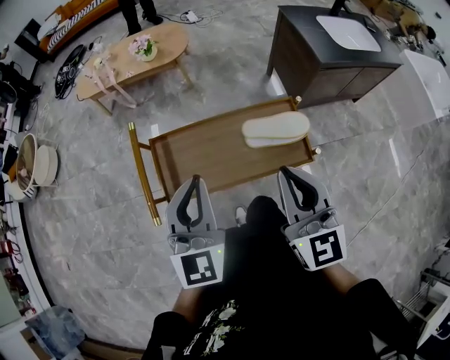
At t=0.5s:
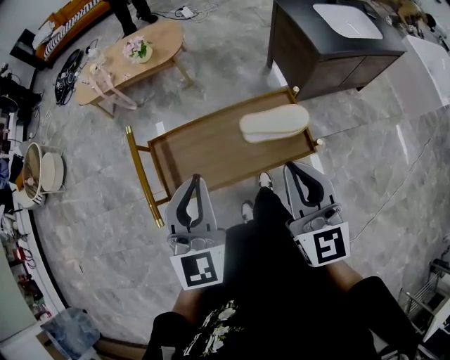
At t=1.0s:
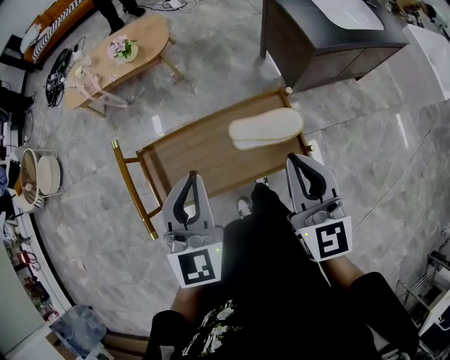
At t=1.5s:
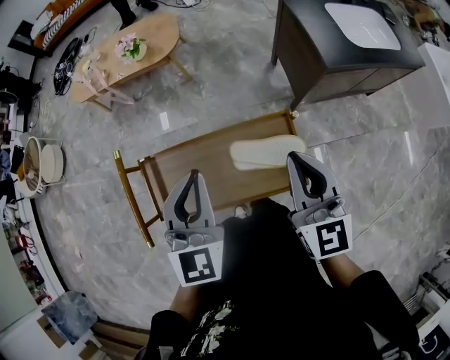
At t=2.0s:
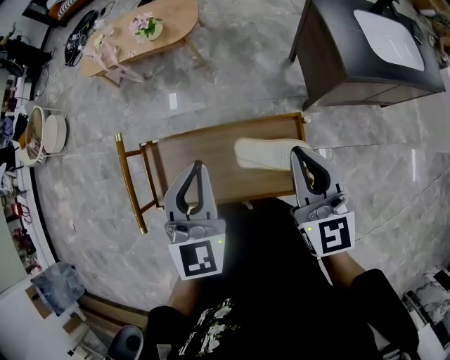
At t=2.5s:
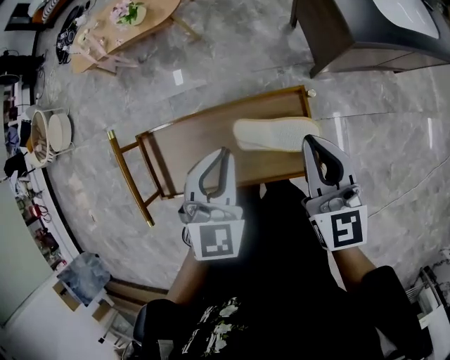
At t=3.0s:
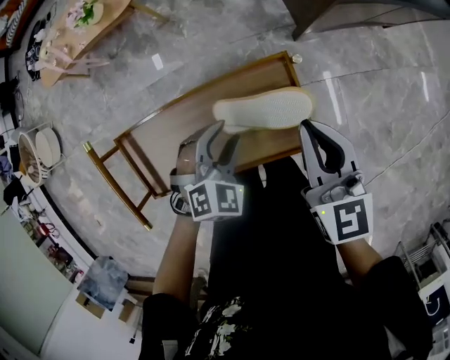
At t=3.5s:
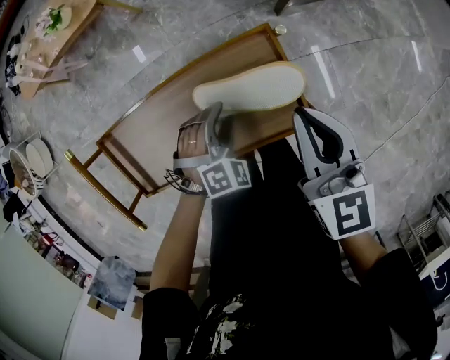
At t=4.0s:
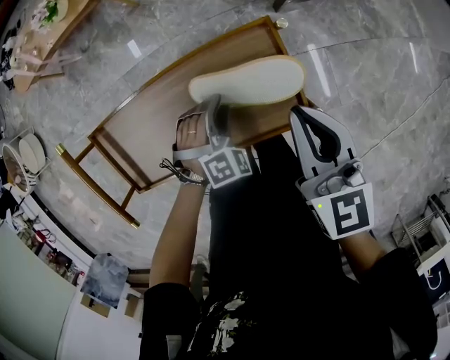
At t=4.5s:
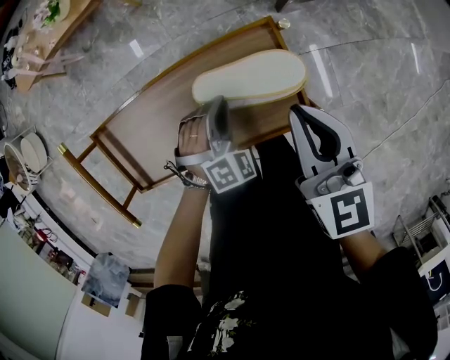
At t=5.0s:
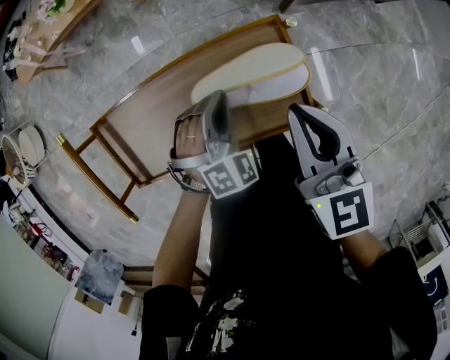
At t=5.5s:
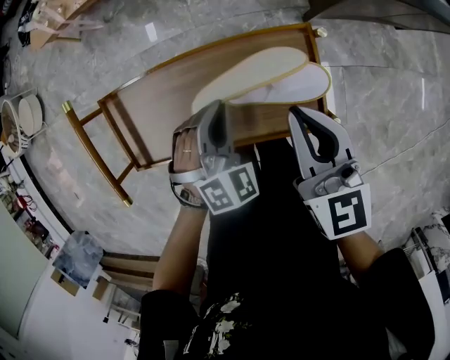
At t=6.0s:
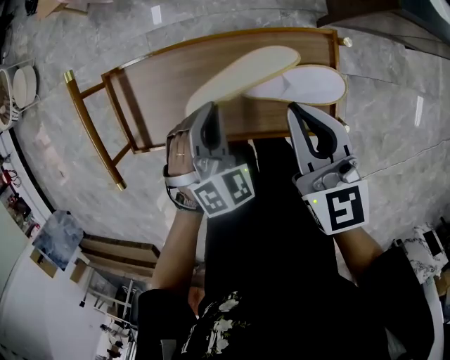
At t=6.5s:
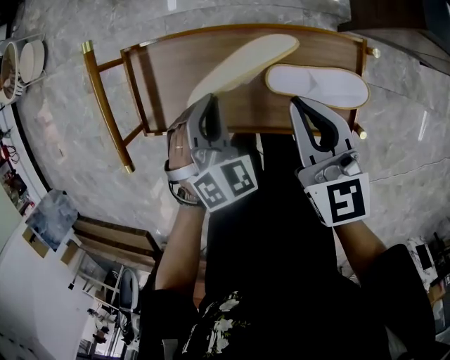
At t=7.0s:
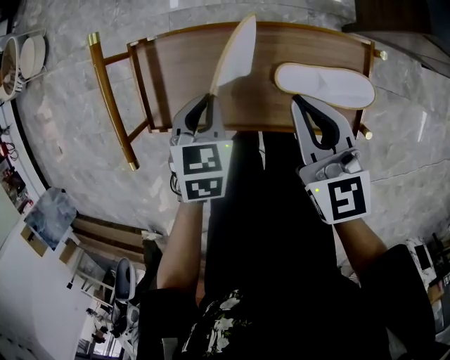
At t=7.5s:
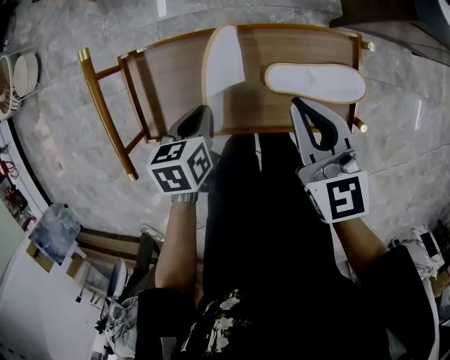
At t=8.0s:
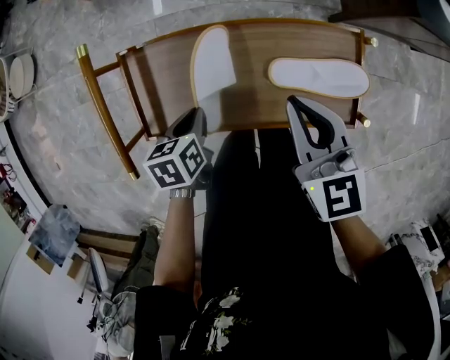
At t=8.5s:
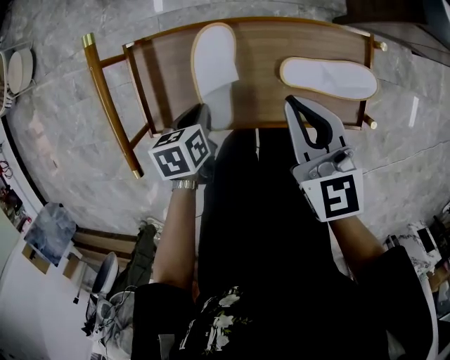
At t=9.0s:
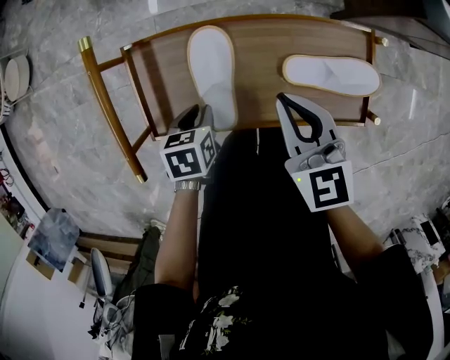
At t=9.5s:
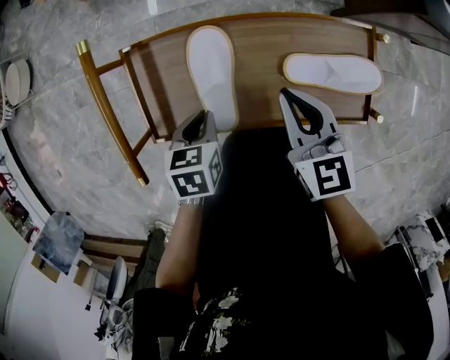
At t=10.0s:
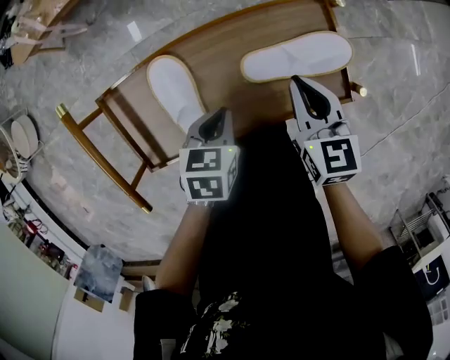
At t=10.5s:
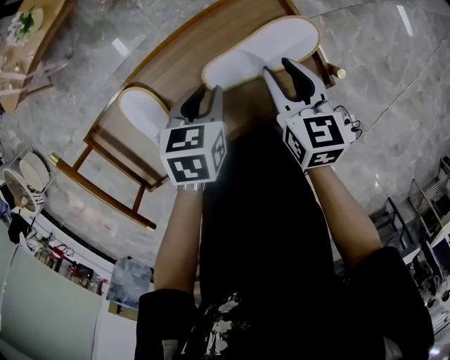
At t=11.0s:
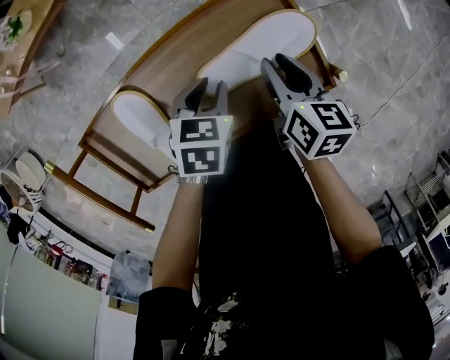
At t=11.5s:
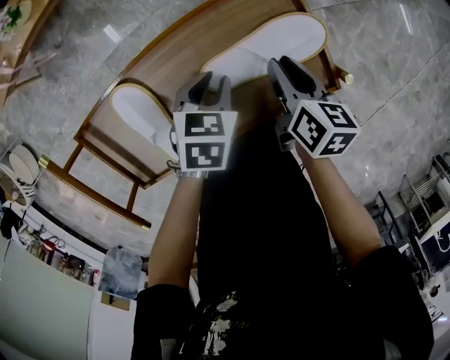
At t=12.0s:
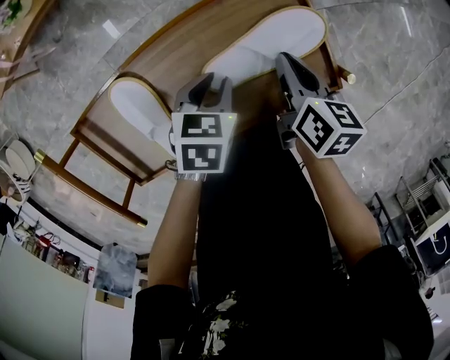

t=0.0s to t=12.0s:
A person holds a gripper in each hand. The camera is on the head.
t=0.0s to t=2.0s: The grippers both shift forward and to the right by approximately 20 cm.
t=2.0s to t=4.0s: The right gripper heads downward, covering roughly 15 cm, and turns by some 20 degrees, while the left gripper travels downward by about 35 cm, angles its fingers downward, by about 40 degrees, and opens up.
t=4.0s to t=6.0s: The right gripper shifts roughly 10 cm to the left, while the left gripper shifts some 15 cm to the left and upward, turns by some 30 degrees, and closes its fingers.
t=6.0s to t=8.0s: The right gripper is displaced to the left by roughly 10 cm, while the left gripper moves to the left and downward, about 15 cm, and rotates around the line of its fingers by approximately 70 degrees, counterclockwise from behind.
t=8.0s to t=10.0s: The left gripper shifts roughly 10 cm to the right, and swivels some 30 degrees. The right gripper is displaced downward and to the right by some 10 cm, and turns by some 20 degrees.
t=10.0s to t=12.0s: The right gripper heads downward and to the right, covering roughly 10 cm, swivels approximately 40 degrees, and opens, then closes once more. The left gripper heads forward and to the right, covering approximately 10 cm, and opens.

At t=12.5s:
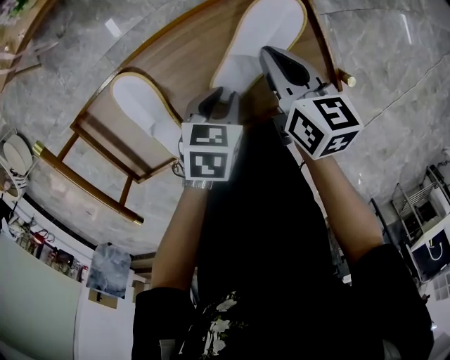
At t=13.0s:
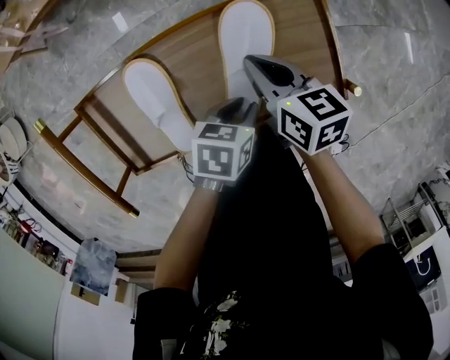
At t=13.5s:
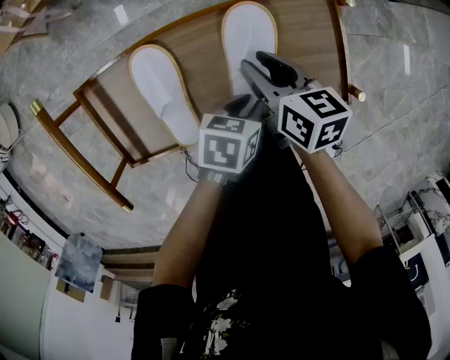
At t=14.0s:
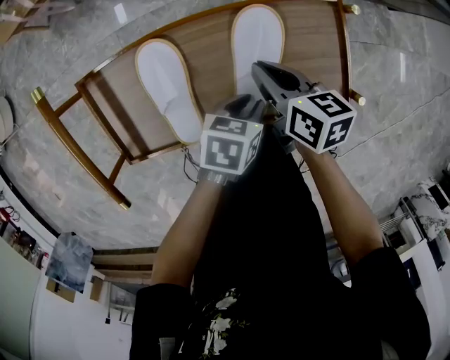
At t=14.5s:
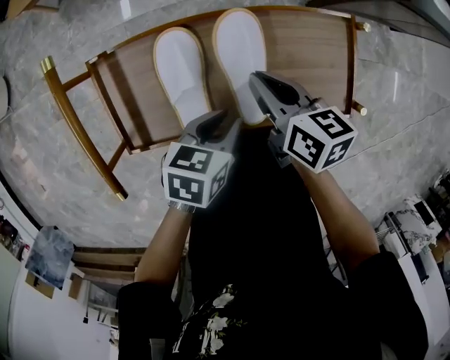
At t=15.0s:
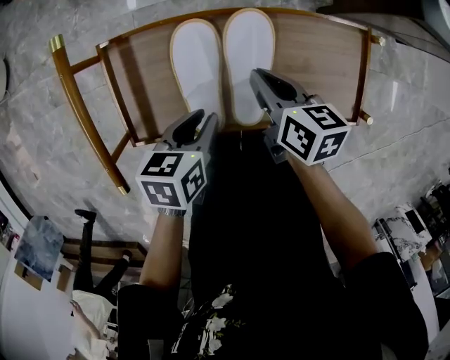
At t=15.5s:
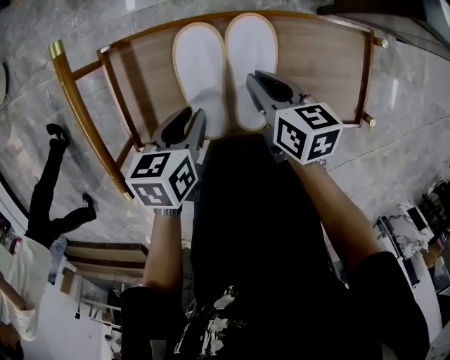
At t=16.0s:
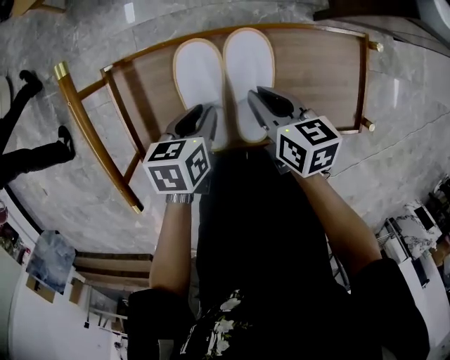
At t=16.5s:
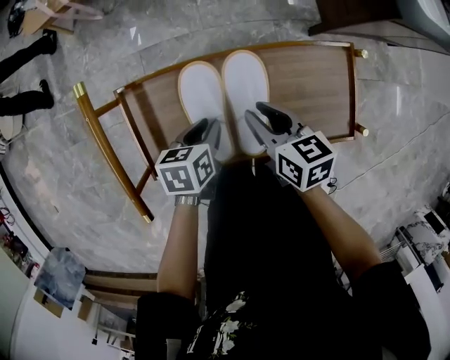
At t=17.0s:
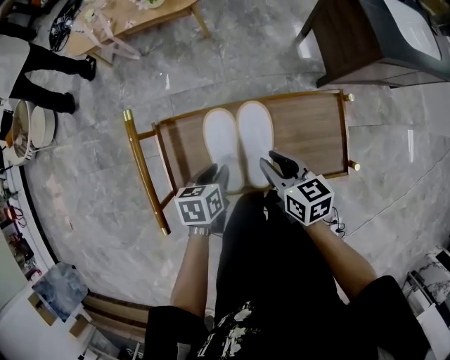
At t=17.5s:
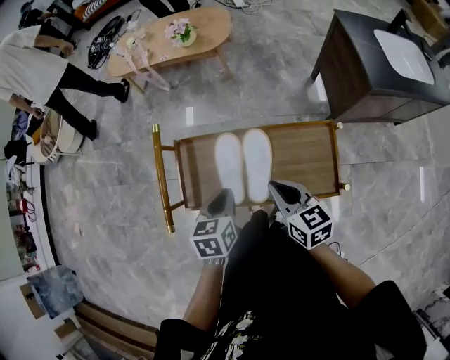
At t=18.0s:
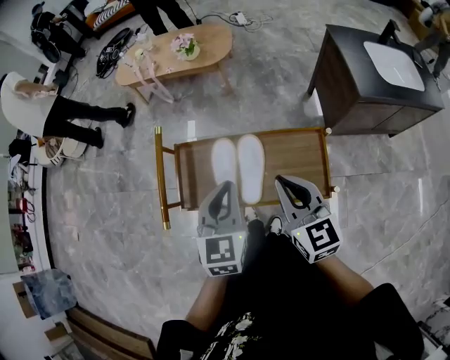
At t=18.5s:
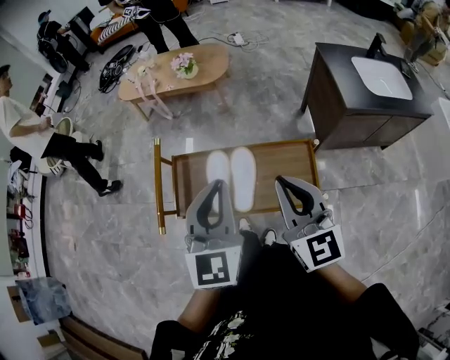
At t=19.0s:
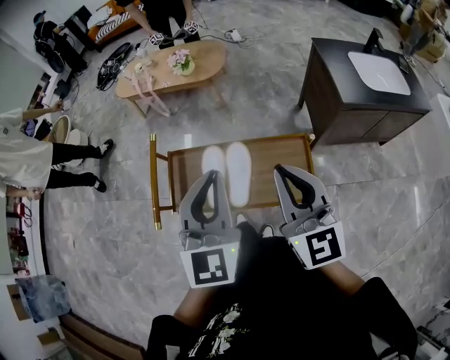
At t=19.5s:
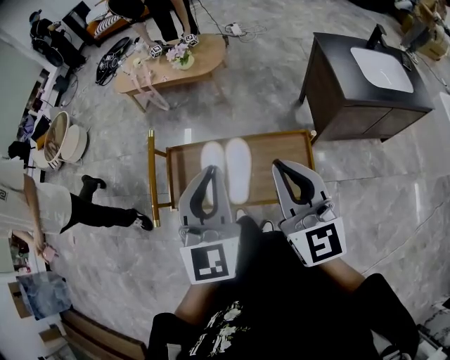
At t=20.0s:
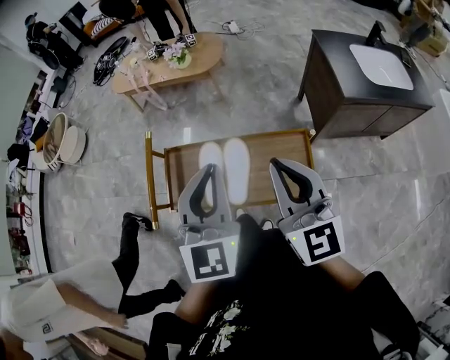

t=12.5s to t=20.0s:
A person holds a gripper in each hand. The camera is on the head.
t=12.5s to t=14.5s: The left gripper is displaced to the left, backward and upward by approximately 10 cm, and rotates approximately 20 degrees; the right gripper goes about 15 cm to the left and backward, swivels some 20 degrees, and opens, then closes once more.
t=14.5s to t=16.5s: The left gripper travels to the left and forward by approximately 10 cm. Meanwhile the right gripper opens its fingers.
t=16.5s to t=18.0s: Both grippers move upward, roughly 25 cm. The right gripper turns by about 40 degrees, and closes, while the left gripper changes its angle by some 50 degrees, and closes.
t=18.0s to t=20.0s: Both grippers travel together upward, approximately 10 cm.

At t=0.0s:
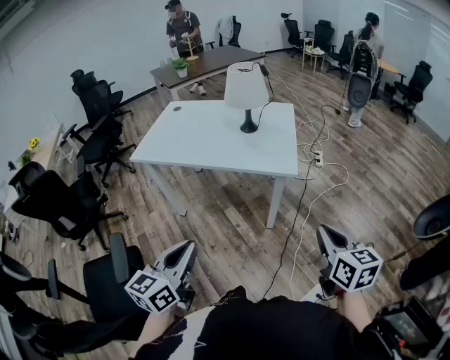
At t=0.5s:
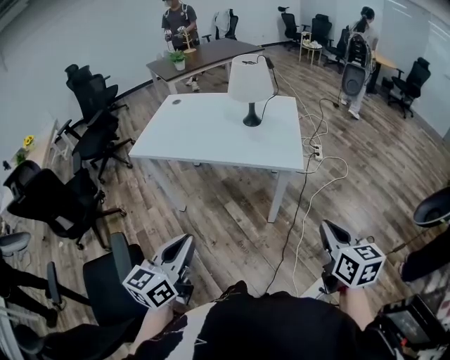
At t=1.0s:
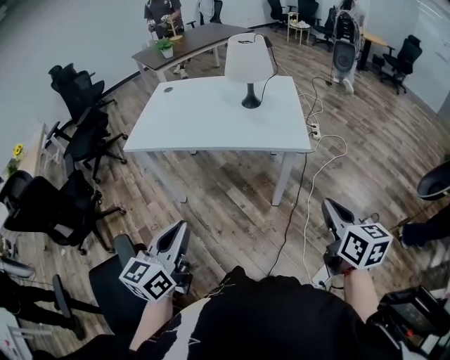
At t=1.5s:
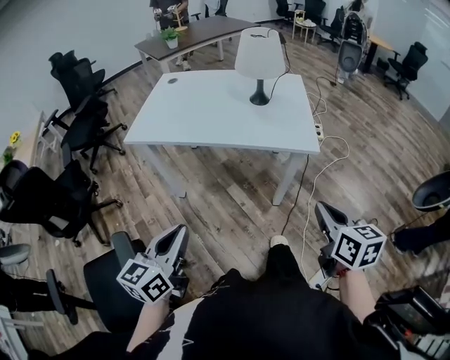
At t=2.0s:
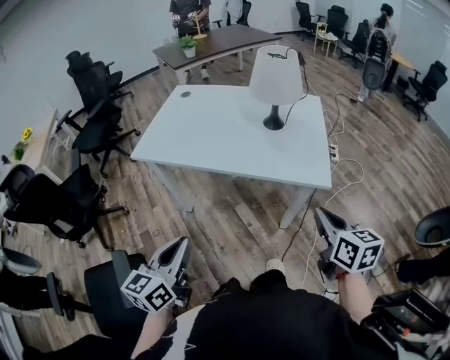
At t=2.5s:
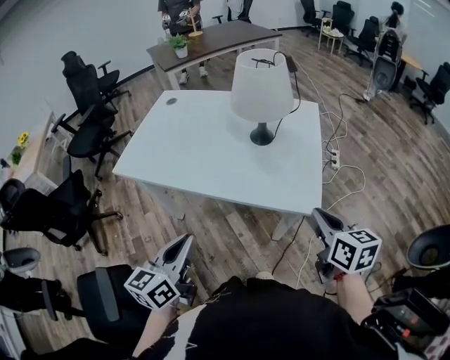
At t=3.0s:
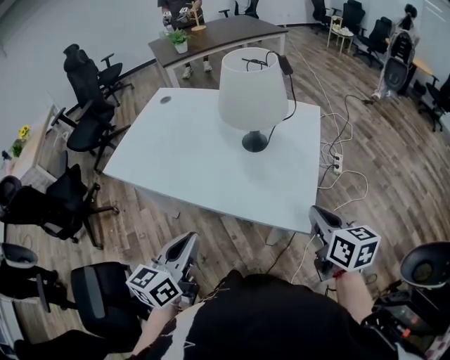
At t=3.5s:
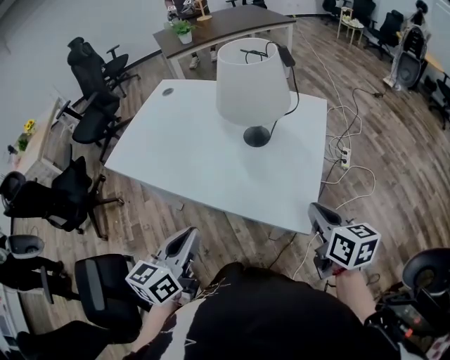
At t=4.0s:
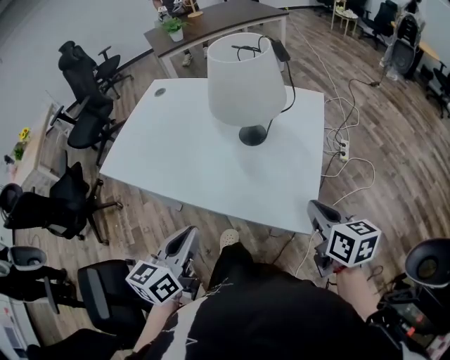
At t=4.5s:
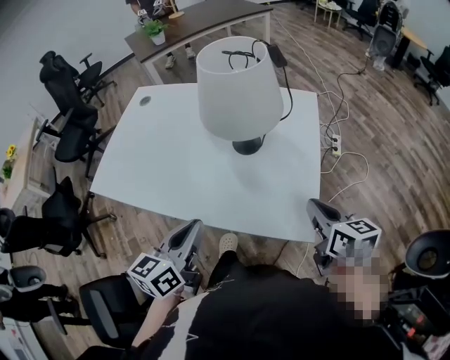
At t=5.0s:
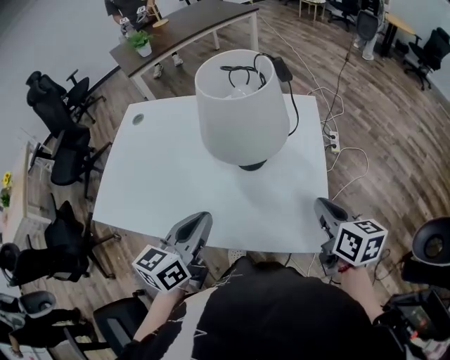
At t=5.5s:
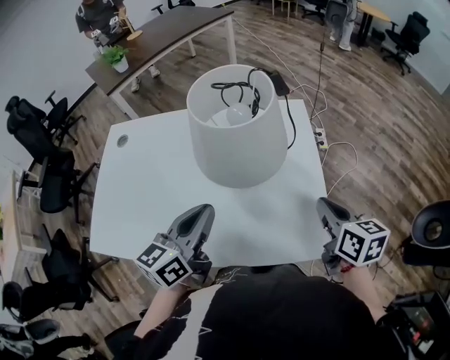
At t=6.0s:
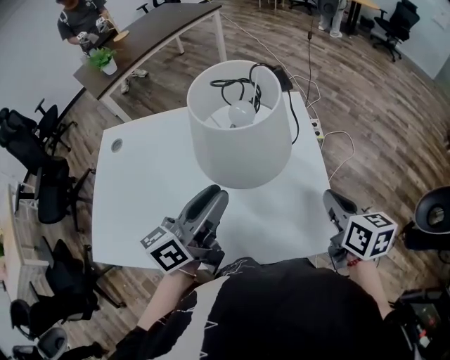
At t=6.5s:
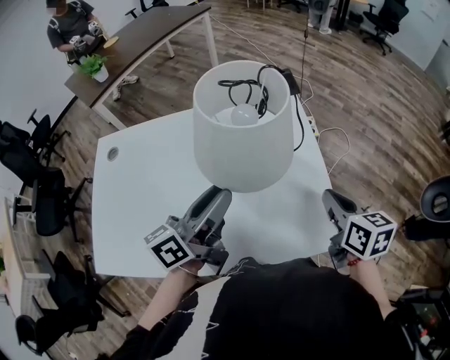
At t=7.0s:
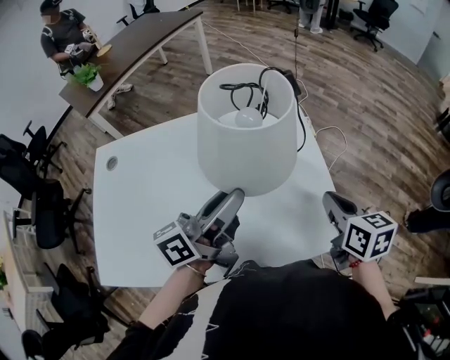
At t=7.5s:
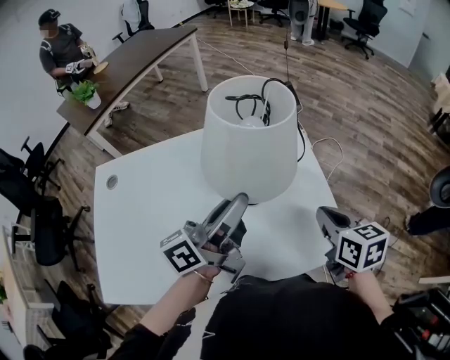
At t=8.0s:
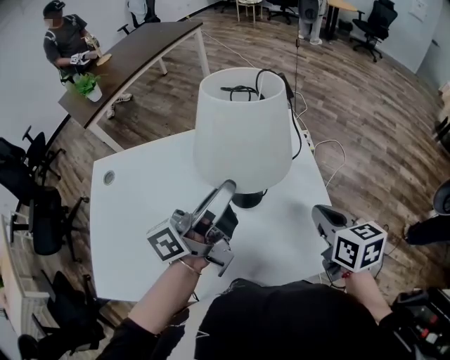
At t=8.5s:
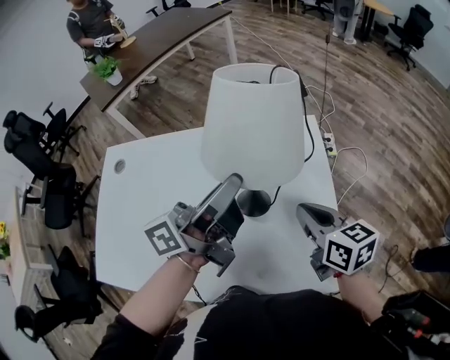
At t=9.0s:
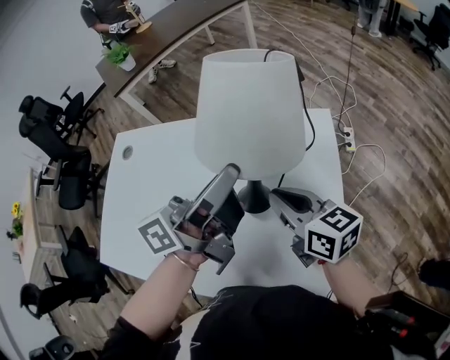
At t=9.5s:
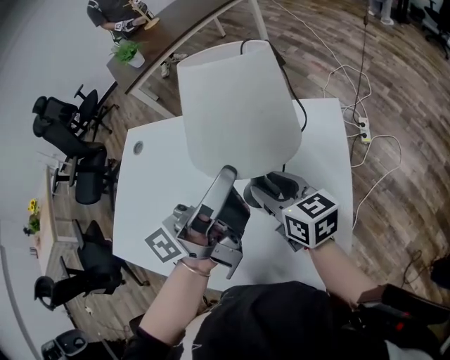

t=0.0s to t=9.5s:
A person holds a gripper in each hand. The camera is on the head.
t=0.0s to t=2.0s: The left gripper shifts roughly 20 cm to the left and forward. Meanwhile the right gripper heads forward and to the left, covering about 20 cm.
t=2.0s to t=4.0s: Both grippers travel together forward and to the right, approximately 30 cm.
t=4.0s to t=5.5s: The left gripper goes some 25 cm forward, and changes its angle by some 30 degrees; the right gripper heads forward, covering about 10 cm, and changes its angle by some 20 degrees.
t=5.5s to t=7.5s: The left gripper shifts some 10 cm forward, swivels about 40 degrees, and opens its fingers.
t=7.5s to t=9.5s: The left gripper changes place by roughly 10 cm; the right gripper ends up roughly 20 cm from where it was, turns by roughly 40 degrees, and opens up.